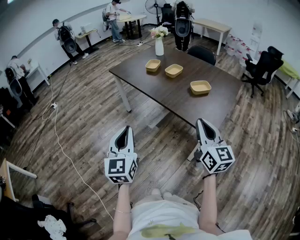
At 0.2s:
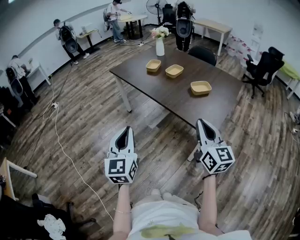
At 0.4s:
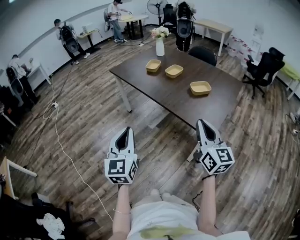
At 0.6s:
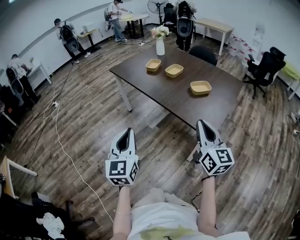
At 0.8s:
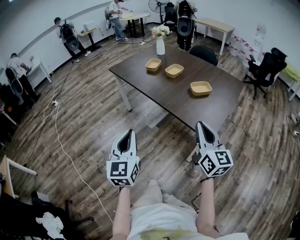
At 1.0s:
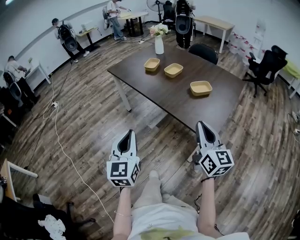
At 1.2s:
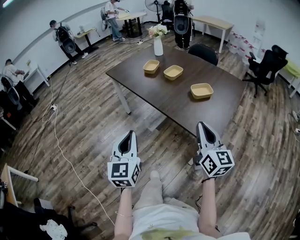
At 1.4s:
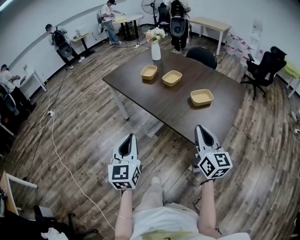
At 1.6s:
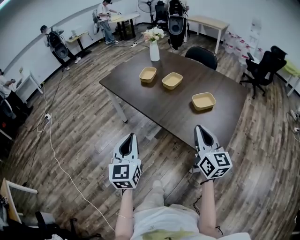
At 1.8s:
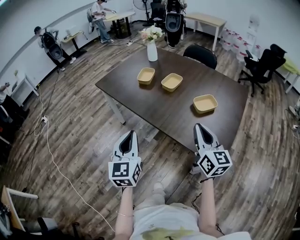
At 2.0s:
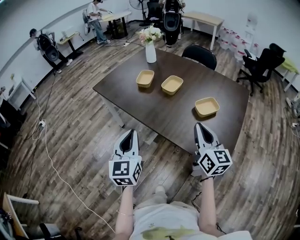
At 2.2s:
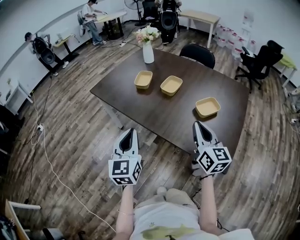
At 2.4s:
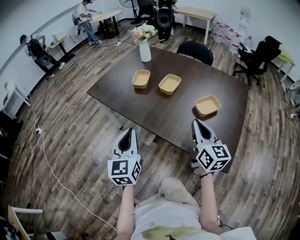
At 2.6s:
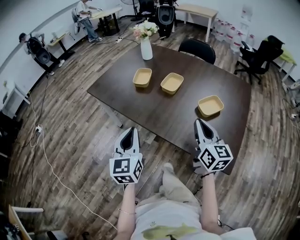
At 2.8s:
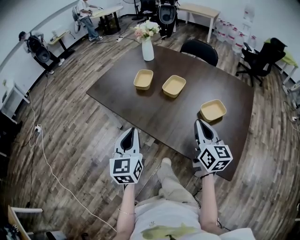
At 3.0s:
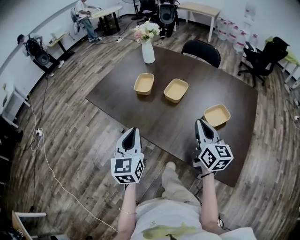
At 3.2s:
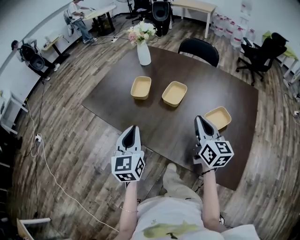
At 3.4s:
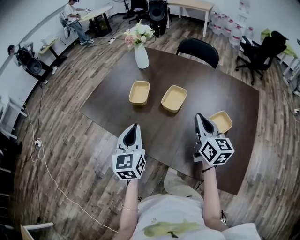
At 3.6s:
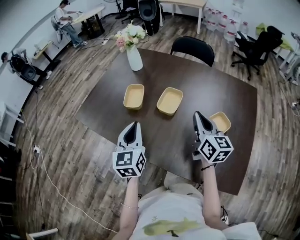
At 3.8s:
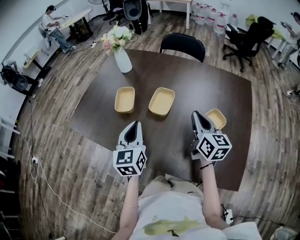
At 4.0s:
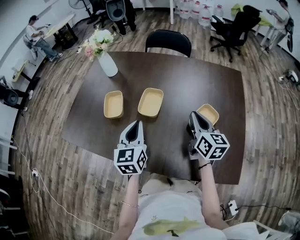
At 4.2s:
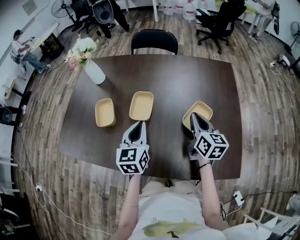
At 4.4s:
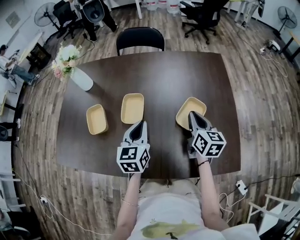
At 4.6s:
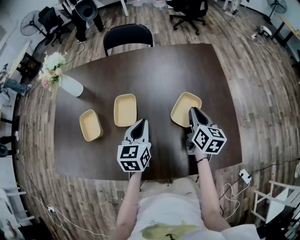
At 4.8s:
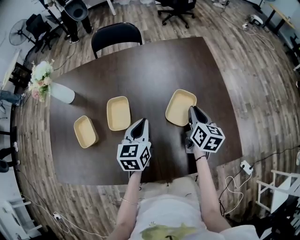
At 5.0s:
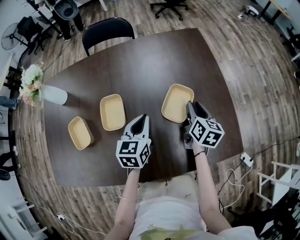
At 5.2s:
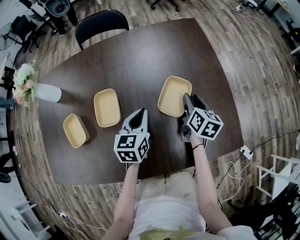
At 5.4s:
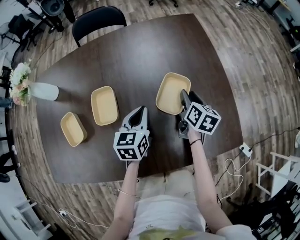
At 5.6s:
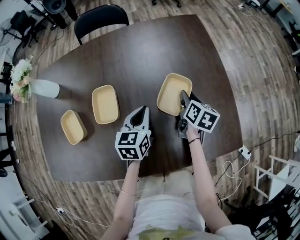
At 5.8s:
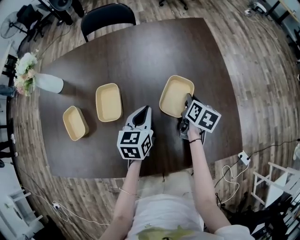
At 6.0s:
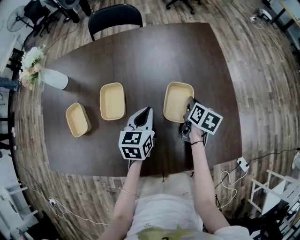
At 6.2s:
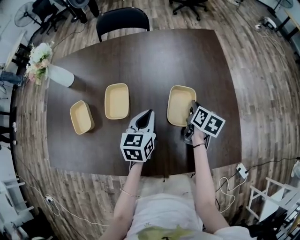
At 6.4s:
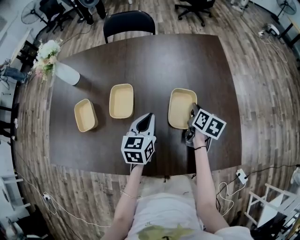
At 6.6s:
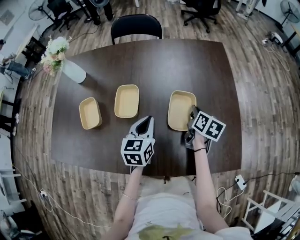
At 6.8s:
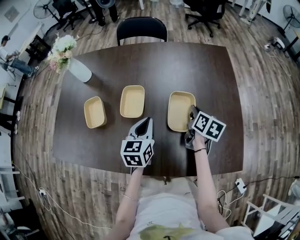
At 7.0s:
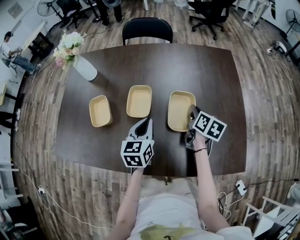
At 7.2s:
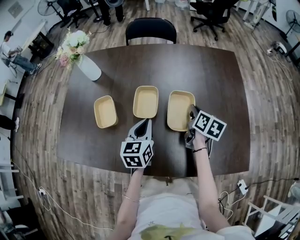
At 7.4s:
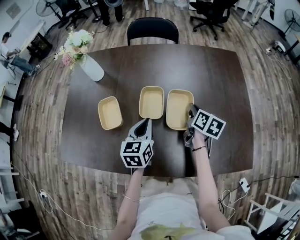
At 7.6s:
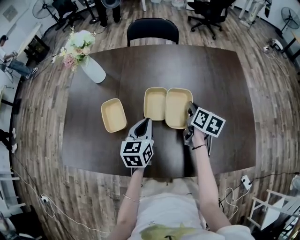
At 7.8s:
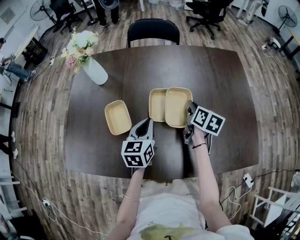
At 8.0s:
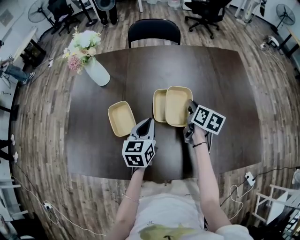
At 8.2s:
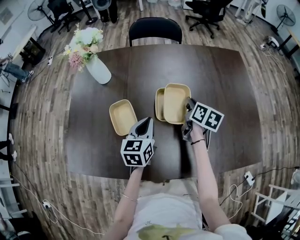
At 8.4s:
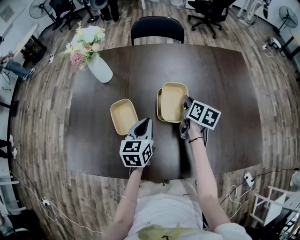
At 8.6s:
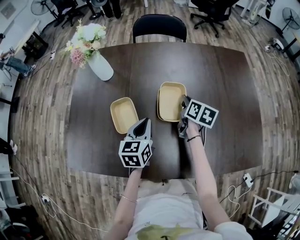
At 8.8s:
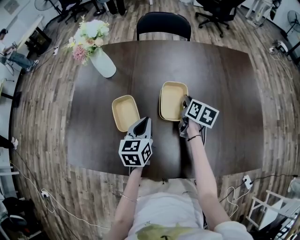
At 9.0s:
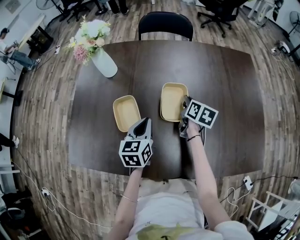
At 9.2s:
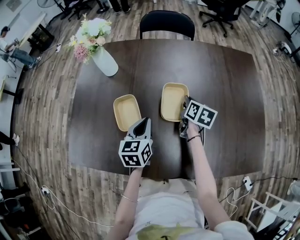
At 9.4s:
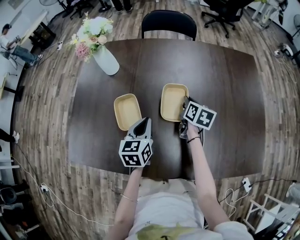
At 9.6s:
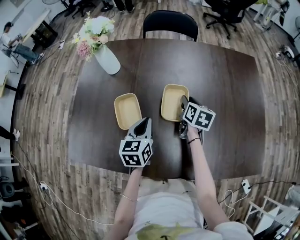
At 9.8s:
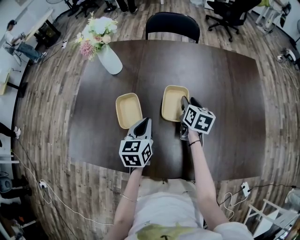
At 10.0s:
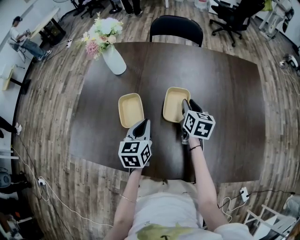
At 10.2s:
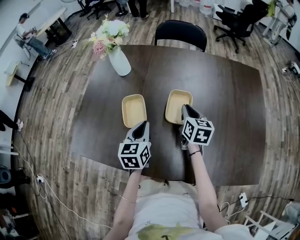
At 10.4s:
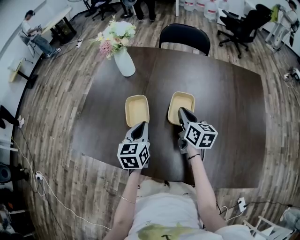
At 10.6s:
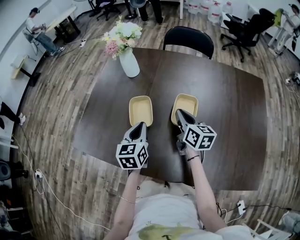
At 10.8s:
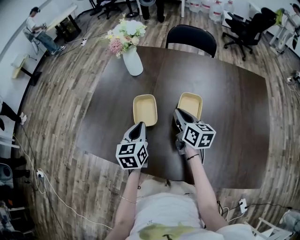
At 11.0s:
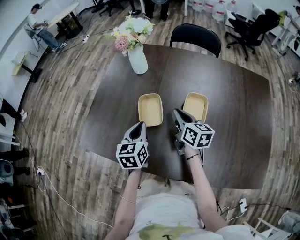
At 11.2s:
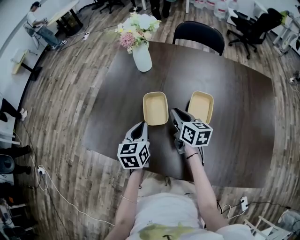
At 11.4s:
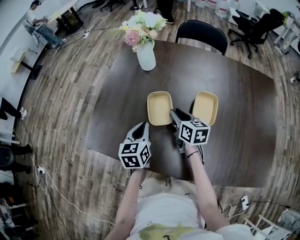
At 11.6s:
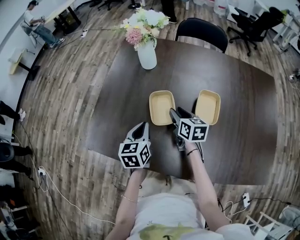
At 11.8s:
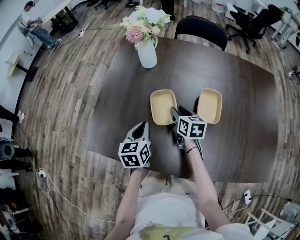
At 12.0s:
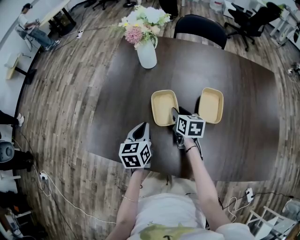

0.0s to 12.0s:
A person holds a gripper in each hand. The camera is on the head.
0.0s to 1.6s: Both grippers travel together forward, some 15 cm.
1.6s to 3.0s: The grippers both shift forward by about 25 cm.
3.0s to 4.4s: The right gripper ends up some 20 cm from where it was, and swivels about 40 degrees, while the left gripper ends up approximately 30 cm from where it was, and swivels roughly 40 degrees.
4.4s to 6.0s: The left gripper moves to the right, downward and forward, about 15 cm. The right gripper shifts approximately 15 cm downward and to the right, swivels approximately 30 degrees, and opens, then closes once more.
6.0s to 7.6s: The two grippers go approximately 20 cm to the left.
7.6s to 9.0s: The grippers both shift to the left by about 10 cm.
9.0s to 10.4s: The right gripper moves to the left and upward, approximately 10 cm, rotates about 30 degrees, and opens, then closes once more; the left gripper ends up approximately 5 cm from where it was.
10.4s to 12.0s: The left gripper travels to the left by roughly 15 cm. Meanwhile the right gripper shifts some 20 cm to the left and downward, and opens its fingers.

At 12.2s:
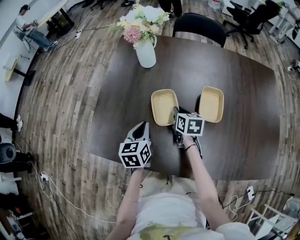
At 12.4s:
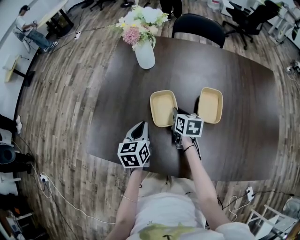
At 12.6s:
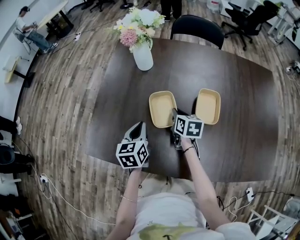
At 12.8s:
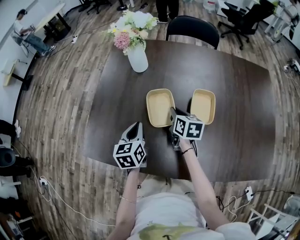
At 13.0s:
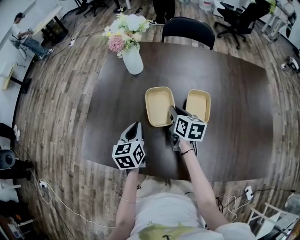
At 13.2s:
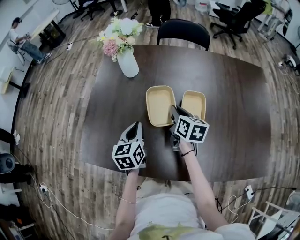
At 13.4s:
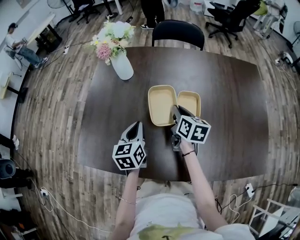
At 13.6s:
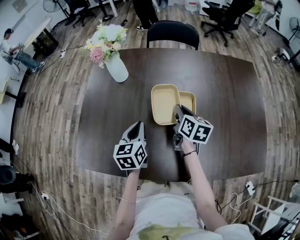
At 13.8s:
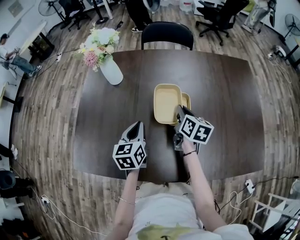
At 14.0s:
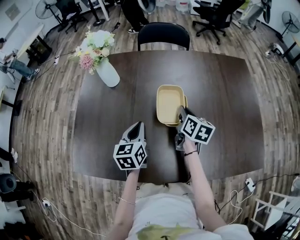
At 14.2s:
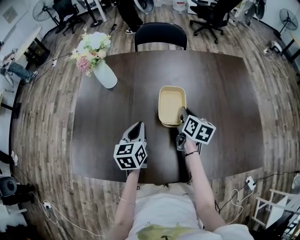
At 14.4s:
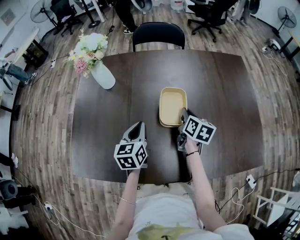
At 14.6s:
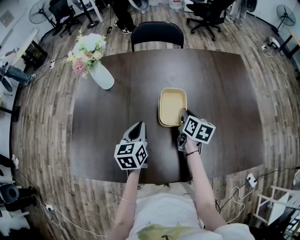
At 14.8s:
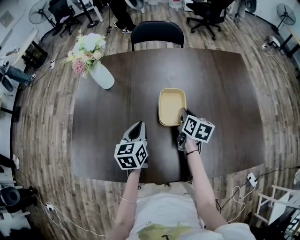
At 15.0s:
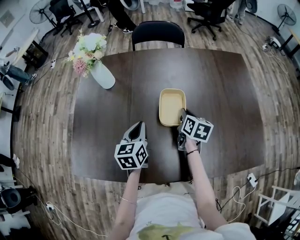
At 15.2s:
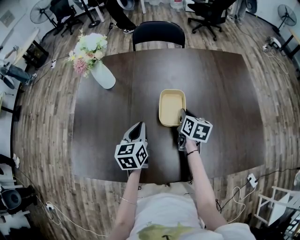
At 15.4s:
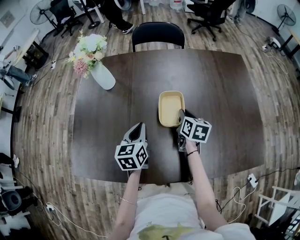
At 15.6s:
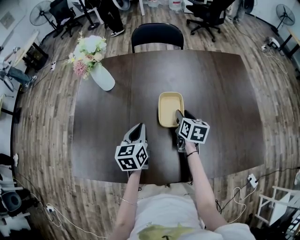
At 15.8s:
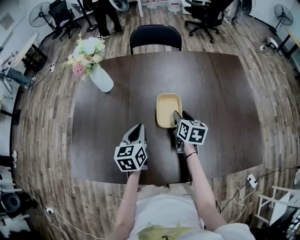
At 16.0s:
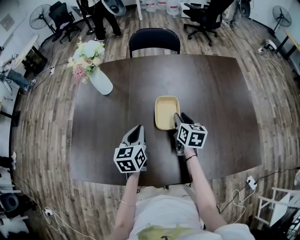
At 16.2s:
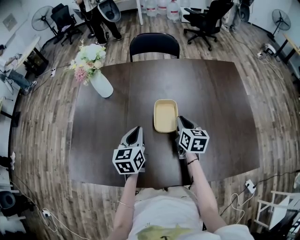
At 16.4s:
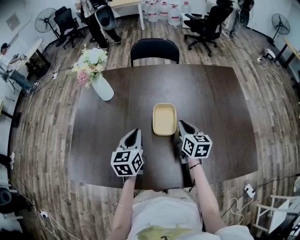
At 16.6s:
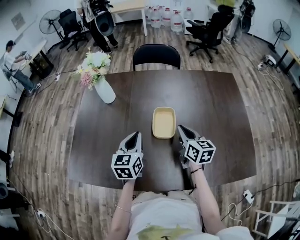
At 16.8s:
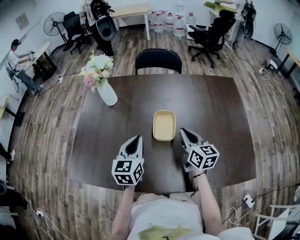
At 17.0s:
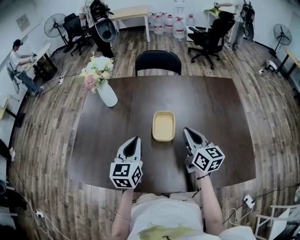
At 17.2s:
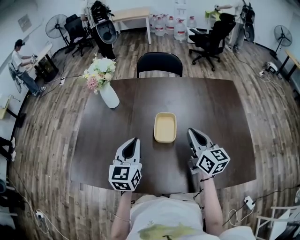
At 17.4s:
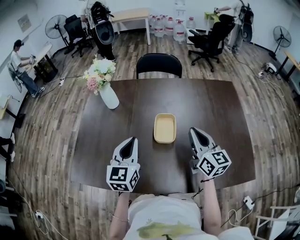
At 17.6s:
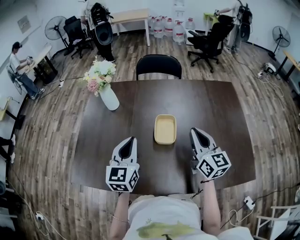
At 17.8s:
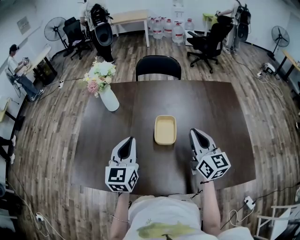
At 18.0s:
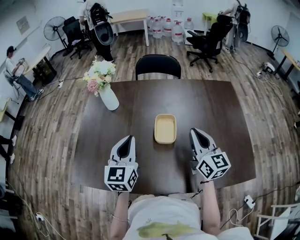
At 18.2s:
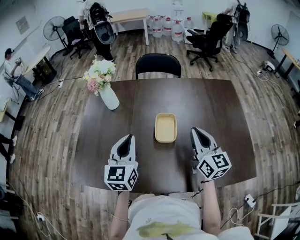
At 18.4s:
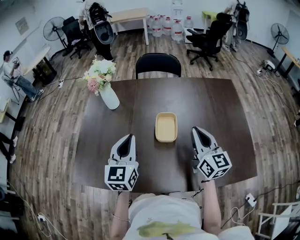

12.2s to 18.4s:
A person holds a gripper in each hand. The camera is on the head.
12.2s to 13.8s: The right gripper moves to the right and upward, about 20 cm, and turns by about 20 degrees. The left gripper shifts some 10 cm to the right.
13.8s to 15.4s: The right gripper changes place by about 5 cm.
15.4s to 16.8s: The right gripper heads upward and backward, covering roughly 10 cm, changes its angle by approximately 30 degrees, and opens and closes again. The left gripper travels upward by some 10 cm.
16.8s to 18.4s: The grippers both shift upward by approximately 10 cm.

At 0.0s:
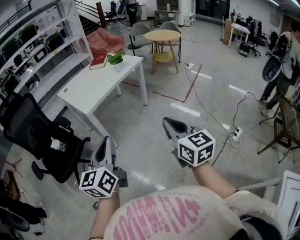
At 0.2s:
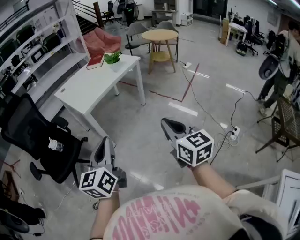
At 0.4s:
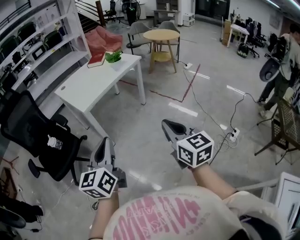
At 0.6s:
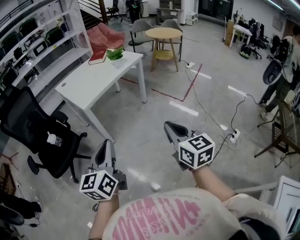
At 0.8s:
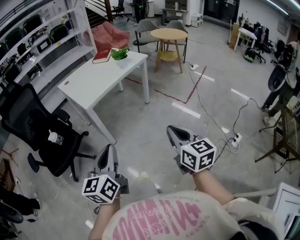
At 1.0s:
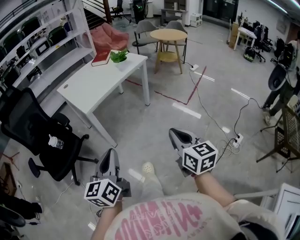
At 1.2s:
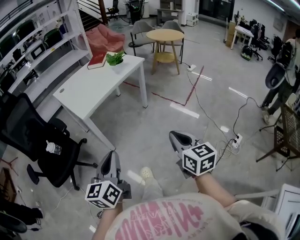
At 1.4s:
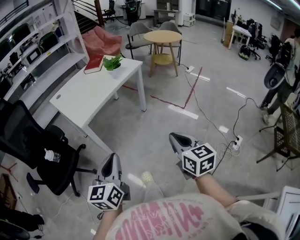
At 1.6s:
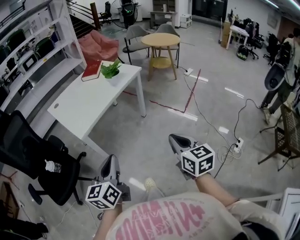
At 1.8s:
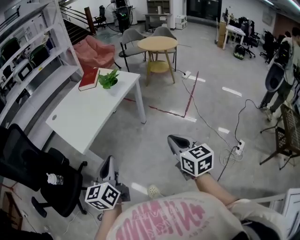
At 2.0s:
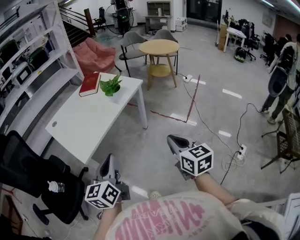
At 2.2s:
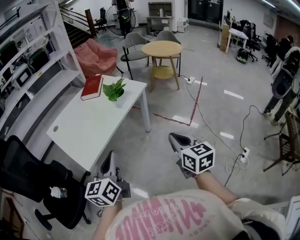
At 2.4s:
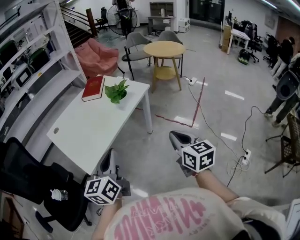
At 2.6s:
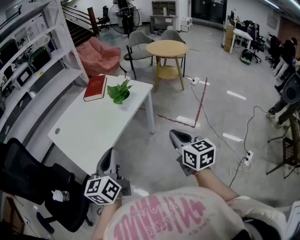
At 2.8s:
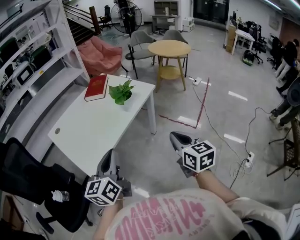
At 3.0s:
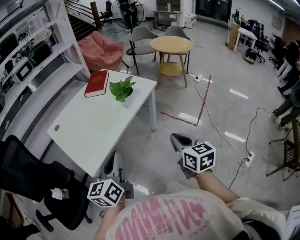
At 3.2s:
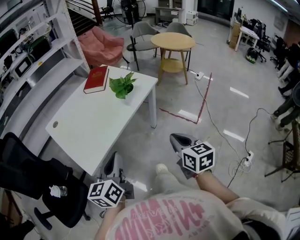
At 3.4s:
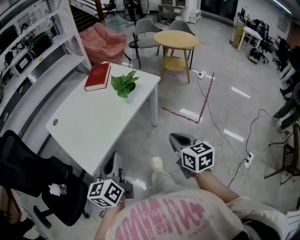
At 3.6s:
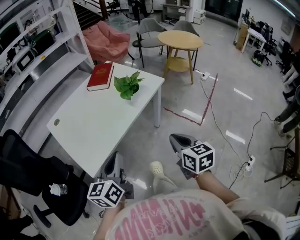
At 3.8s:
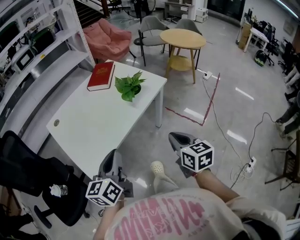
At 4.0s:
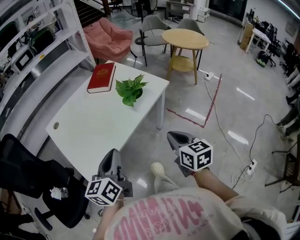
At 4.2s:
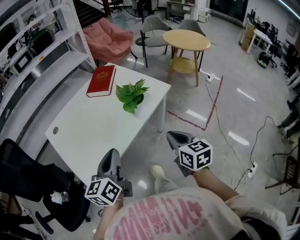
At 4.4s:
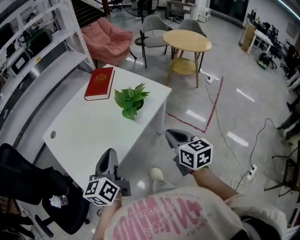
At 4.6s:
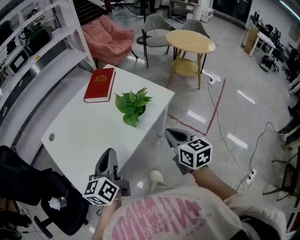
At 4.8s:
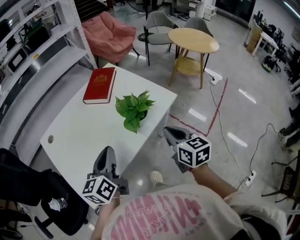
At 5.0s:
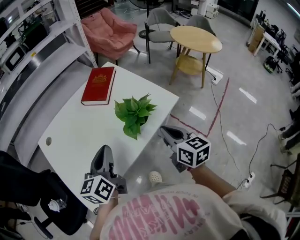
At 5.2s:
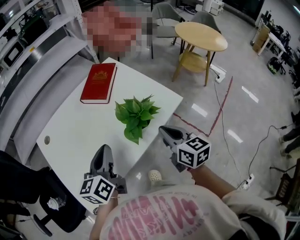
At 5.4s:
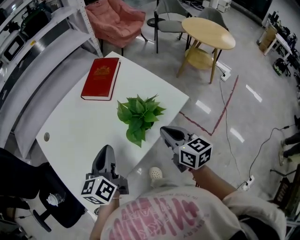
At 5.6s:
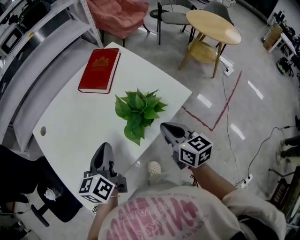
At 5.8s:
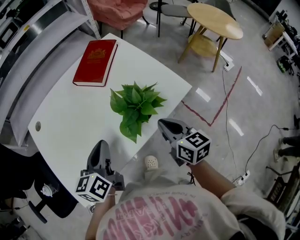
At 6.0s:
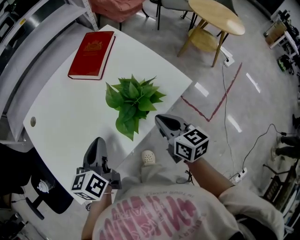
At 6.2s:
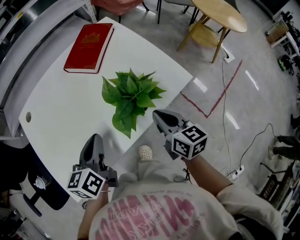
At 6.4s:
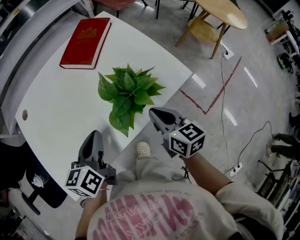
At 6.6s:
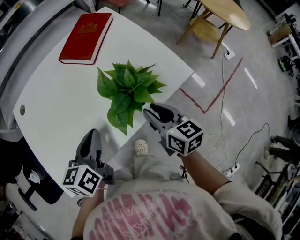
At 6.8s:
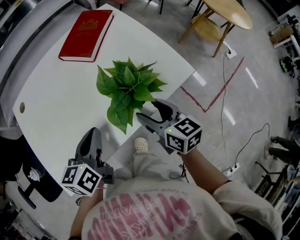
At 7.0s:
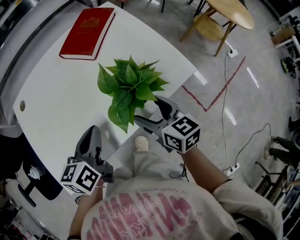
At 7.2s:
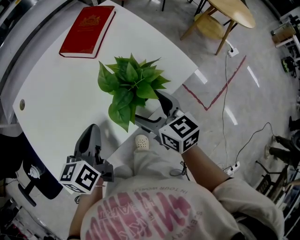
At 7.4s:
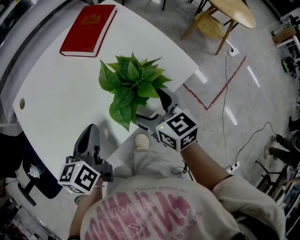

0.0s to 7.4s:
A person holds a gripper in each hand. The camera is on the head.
0.0s to 1.4s: Both grippers travel together forward and downward, about 10 cm.
1.4s to 3.0s: Both grippers travel together forward, roughly 30 cm.
3.0s to 4.4s: The grippers both shift forward by approximately 20 cm.
4.4s to 6.0s: The grippers both shift forward and downward by some 20 cm.
6.0s to 7.4s: The right gripper moves to the left, roughly 5 cm, and opens up.
